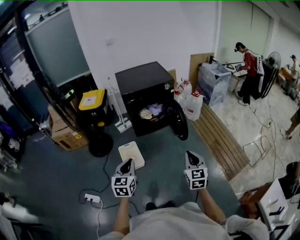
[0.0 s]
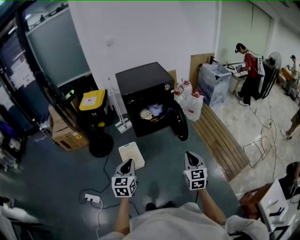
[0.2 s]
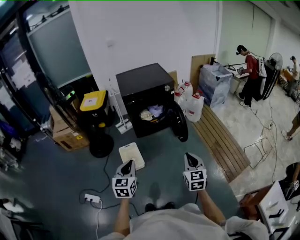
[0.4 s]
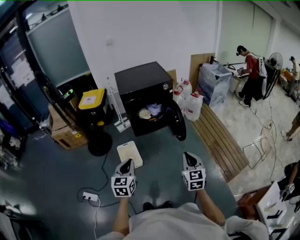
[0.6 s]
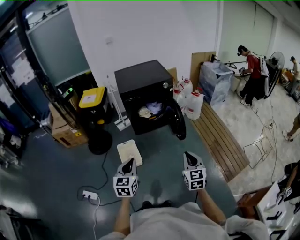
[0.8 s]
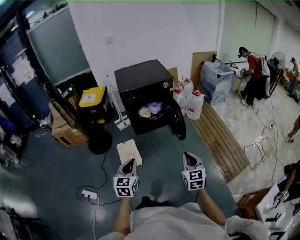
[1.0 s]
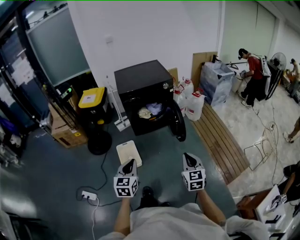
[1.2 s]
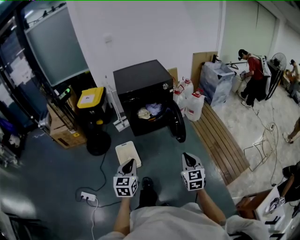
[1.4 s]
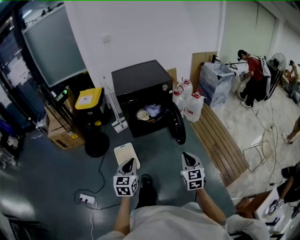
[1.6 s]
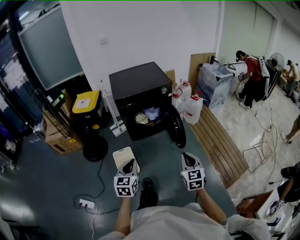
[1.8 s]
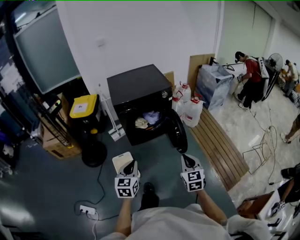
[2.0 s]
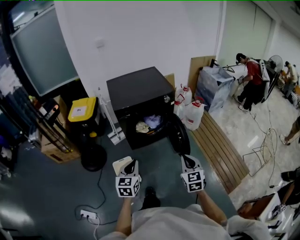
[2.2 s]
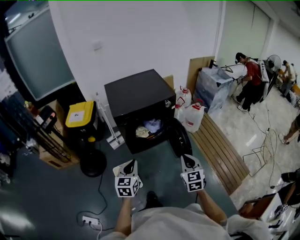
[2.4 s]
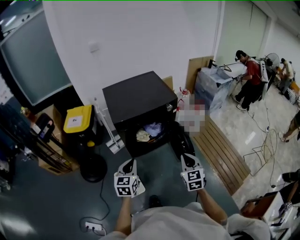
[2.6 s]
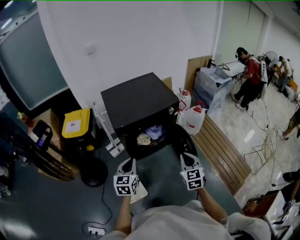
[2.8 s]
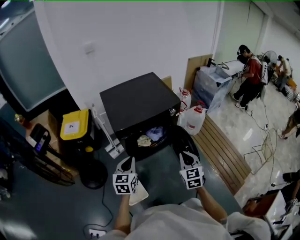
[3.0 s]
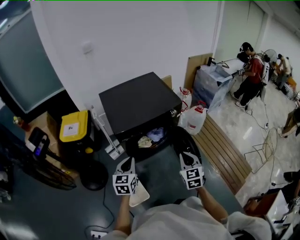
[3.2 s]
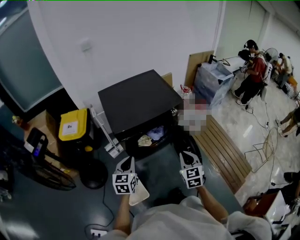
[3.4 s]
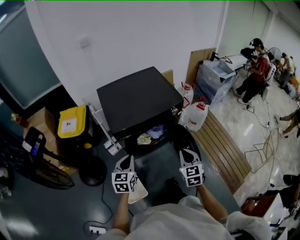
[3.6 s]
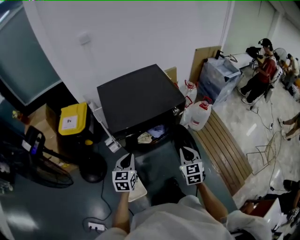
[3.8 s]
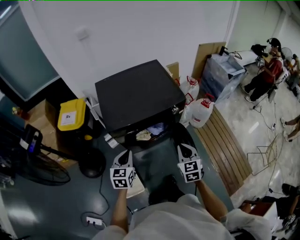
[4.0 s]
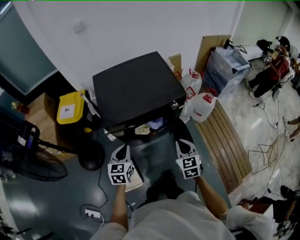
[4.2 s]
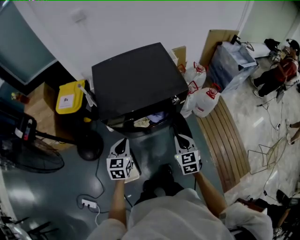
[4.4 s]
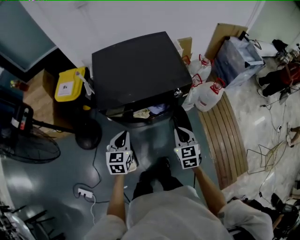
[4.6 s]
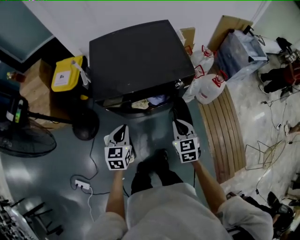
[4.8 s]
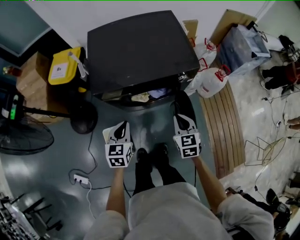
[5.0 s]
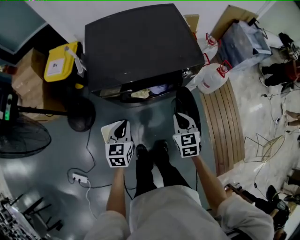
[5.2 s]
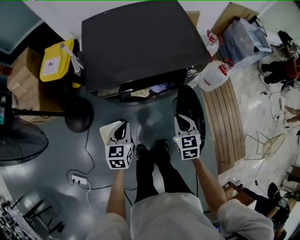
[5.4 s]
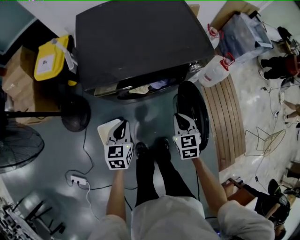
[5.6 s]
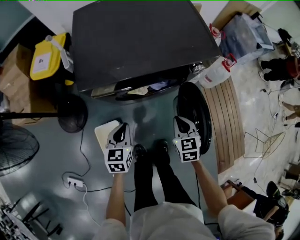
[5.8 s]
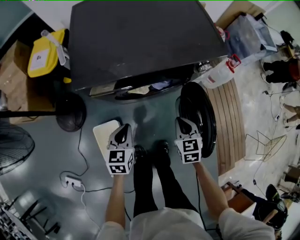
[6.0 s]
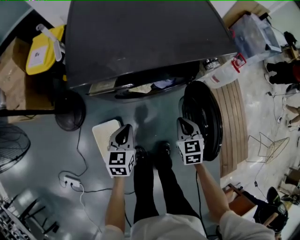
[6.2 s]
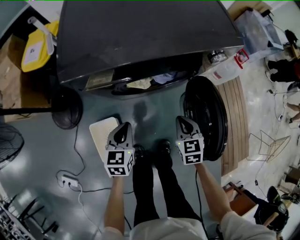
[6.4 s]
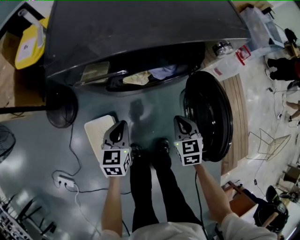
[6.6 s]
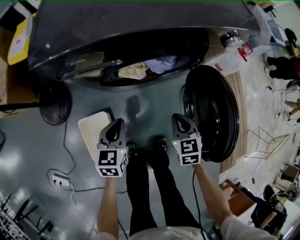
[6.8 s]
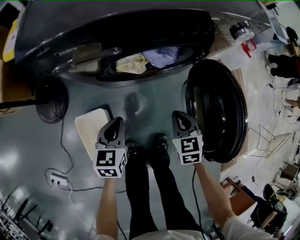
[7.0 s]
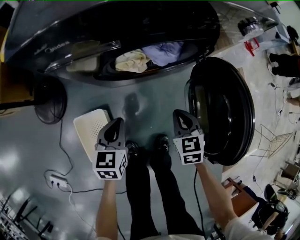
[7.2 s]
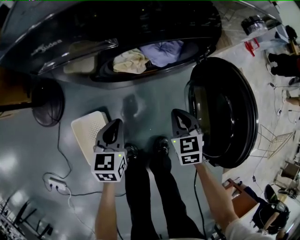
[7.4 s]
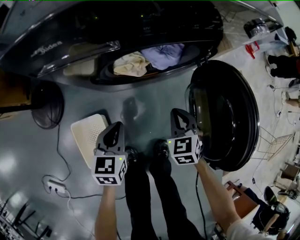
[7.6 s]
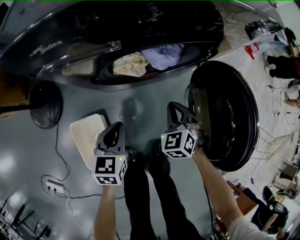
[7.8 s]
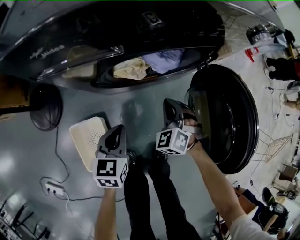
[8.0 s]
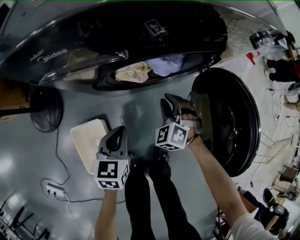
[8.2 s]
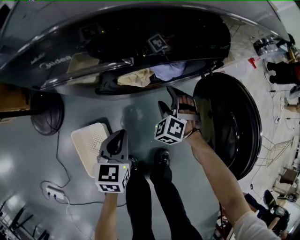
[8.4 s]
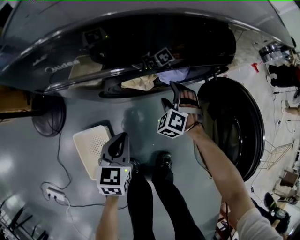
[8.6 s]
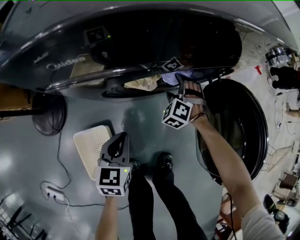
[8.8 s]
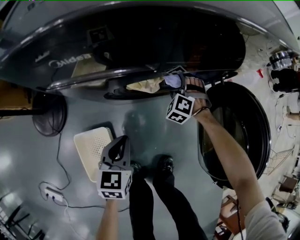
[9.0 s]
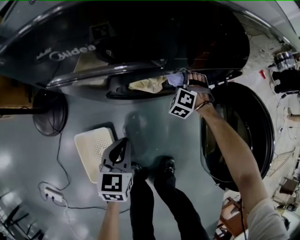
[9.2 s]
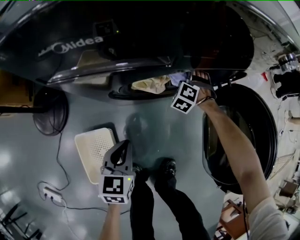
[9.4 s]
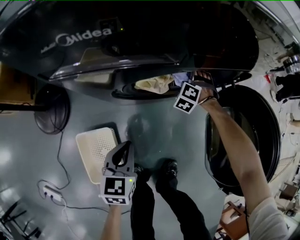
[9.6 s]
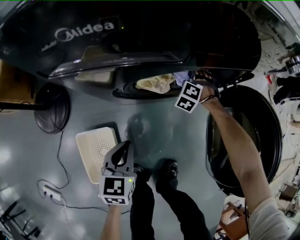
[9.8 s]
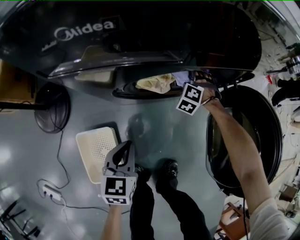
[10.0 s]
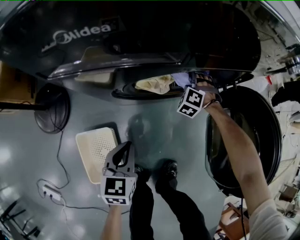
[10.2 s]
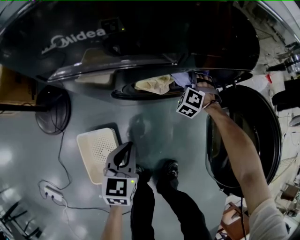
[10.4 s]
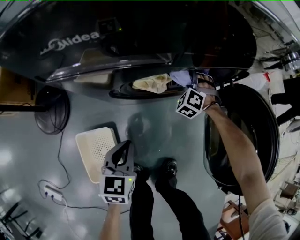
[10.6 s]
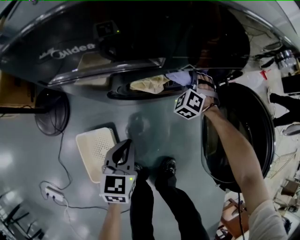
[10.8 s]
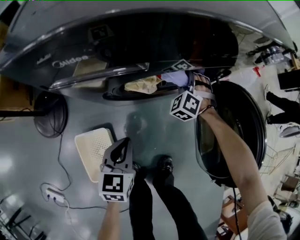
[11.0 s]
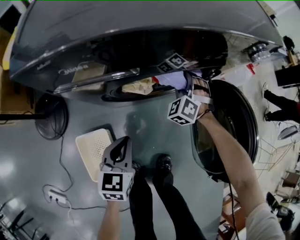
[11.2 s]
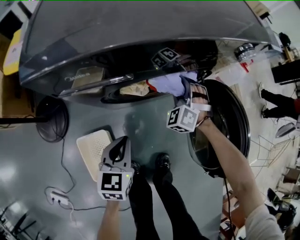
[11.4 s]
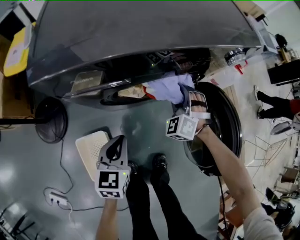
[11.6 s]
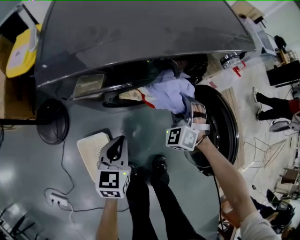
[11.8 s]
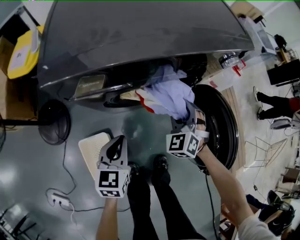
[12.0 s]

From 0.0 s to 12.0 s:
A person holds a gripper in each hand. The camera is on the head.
From 0.0 s to 1.6 s: The left gripper travels forward and to the right by roughly 10 cm. The right gripper travels forward by roughly 10 cm.
From 1.6 s to 3.0 s: The right gripper goes about 40 cm forward and to the left; the left gripper heads forward, covering about 40 cm.
From 3.0 s to 4.4 s: The left gripper goes about 15 cm forward, to the right and downward; the right gripper travels forward and downward by about 20 cm.
From 4.4 s to 6.0 s: The two grippers go roughly 25 cm downward.
From 6.0 s to 7.6 s: Both grippers move downward, roughly 20 cm.
From 7.6 s to 9.0 s: The right gripper shifts roughly 20 cm forward and downward, rolls counterclockwise, seen from behind, by some 50 degrees, and opens up.
From 9.0 s to 10.4 s: The right gripper closes.
From 10.4 s to 12.0 s: The right gripper heads upward and backward, covering about 30 cm, and rotates approximately 30 degrees; the left gripper heads upward, covering about 15 cm.

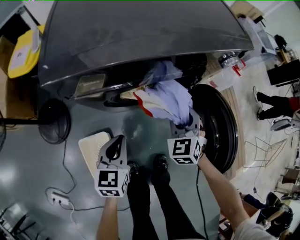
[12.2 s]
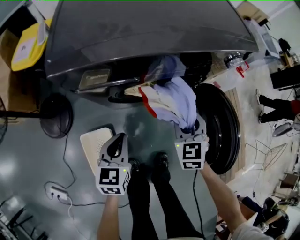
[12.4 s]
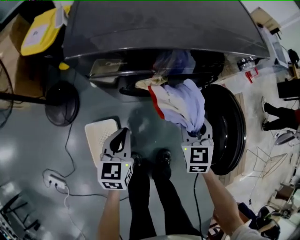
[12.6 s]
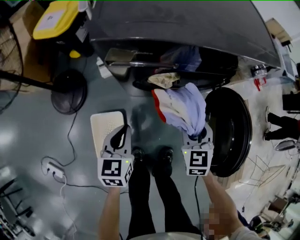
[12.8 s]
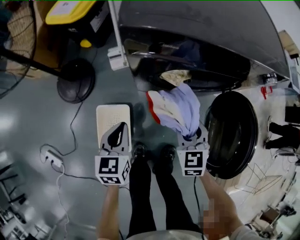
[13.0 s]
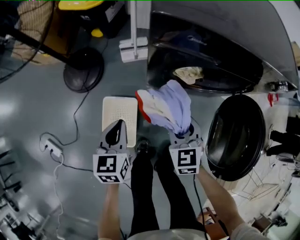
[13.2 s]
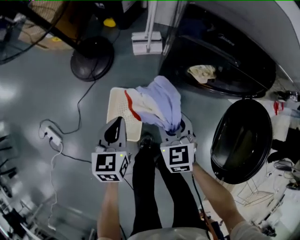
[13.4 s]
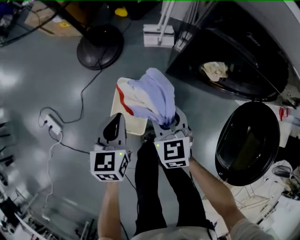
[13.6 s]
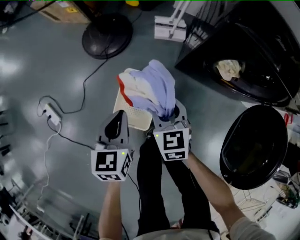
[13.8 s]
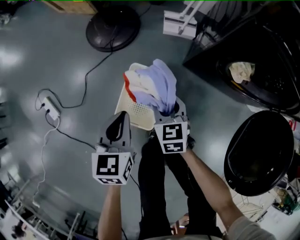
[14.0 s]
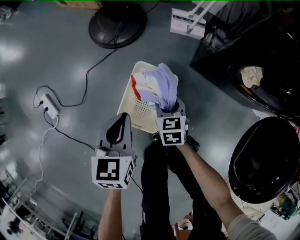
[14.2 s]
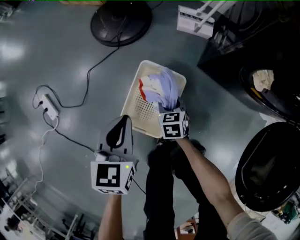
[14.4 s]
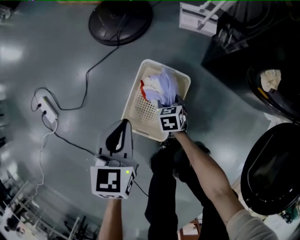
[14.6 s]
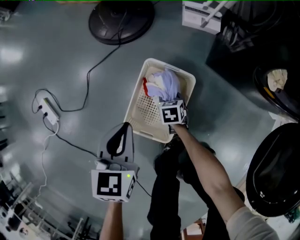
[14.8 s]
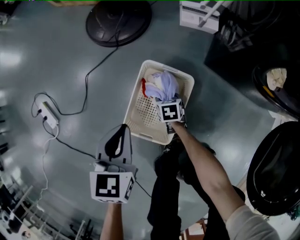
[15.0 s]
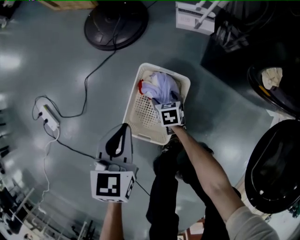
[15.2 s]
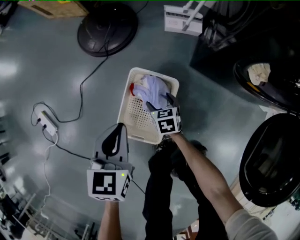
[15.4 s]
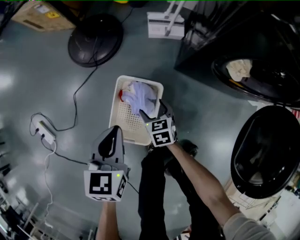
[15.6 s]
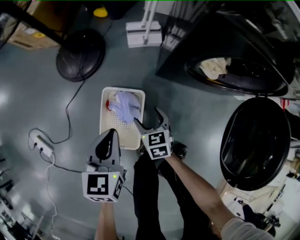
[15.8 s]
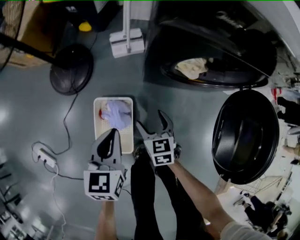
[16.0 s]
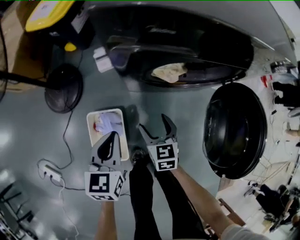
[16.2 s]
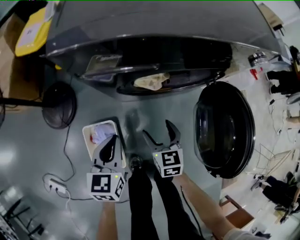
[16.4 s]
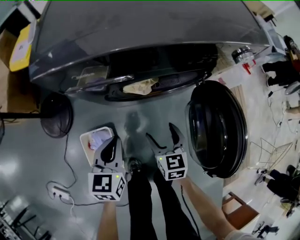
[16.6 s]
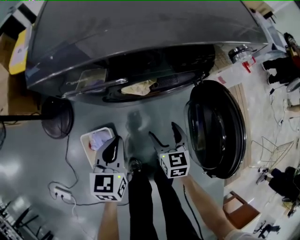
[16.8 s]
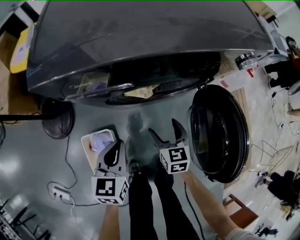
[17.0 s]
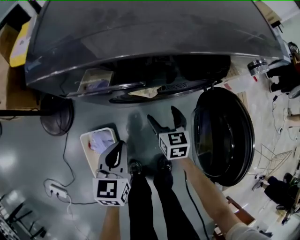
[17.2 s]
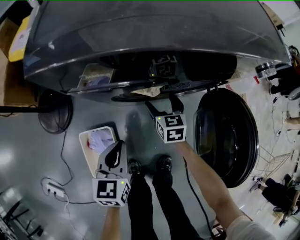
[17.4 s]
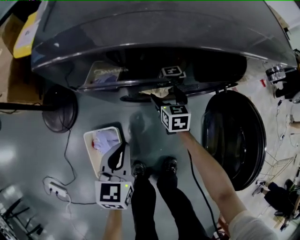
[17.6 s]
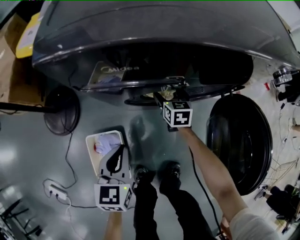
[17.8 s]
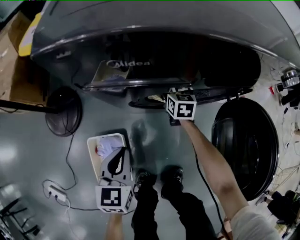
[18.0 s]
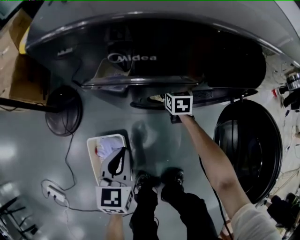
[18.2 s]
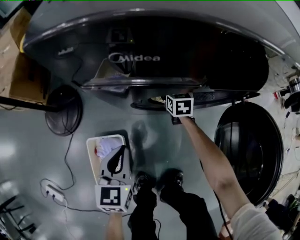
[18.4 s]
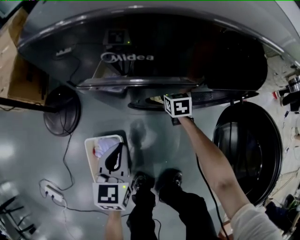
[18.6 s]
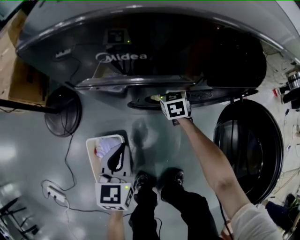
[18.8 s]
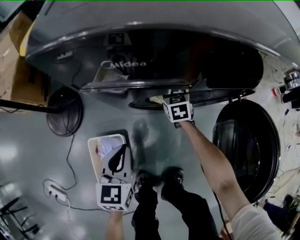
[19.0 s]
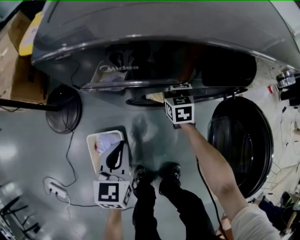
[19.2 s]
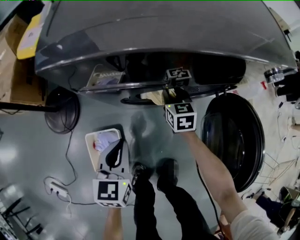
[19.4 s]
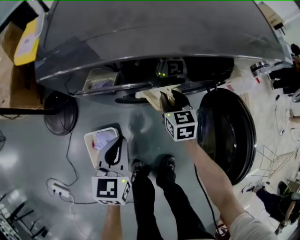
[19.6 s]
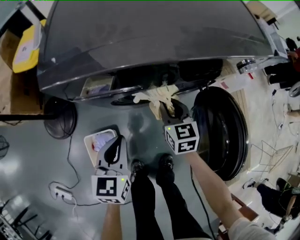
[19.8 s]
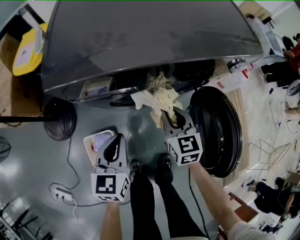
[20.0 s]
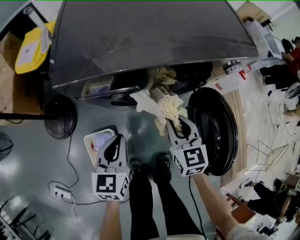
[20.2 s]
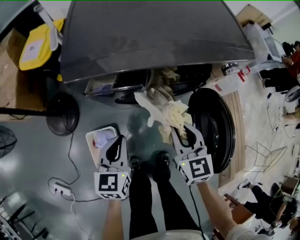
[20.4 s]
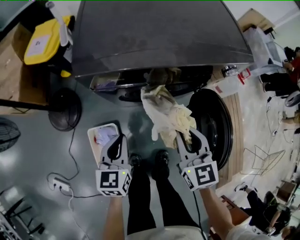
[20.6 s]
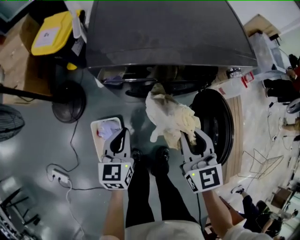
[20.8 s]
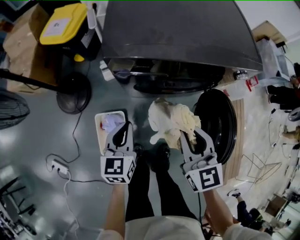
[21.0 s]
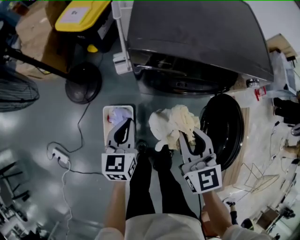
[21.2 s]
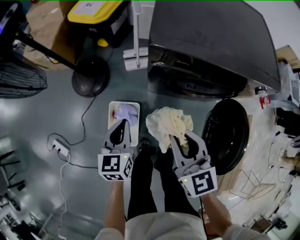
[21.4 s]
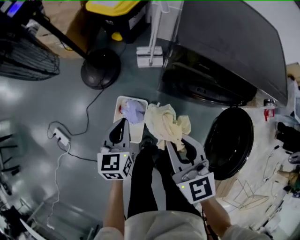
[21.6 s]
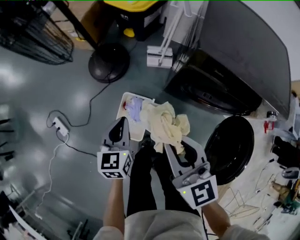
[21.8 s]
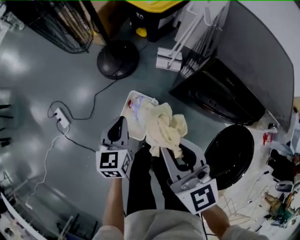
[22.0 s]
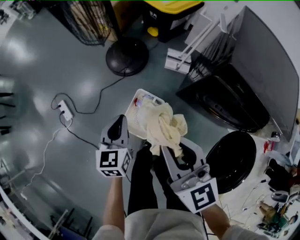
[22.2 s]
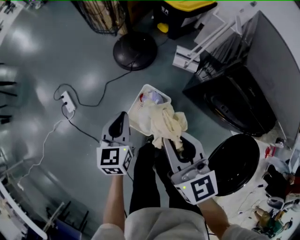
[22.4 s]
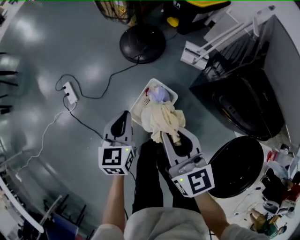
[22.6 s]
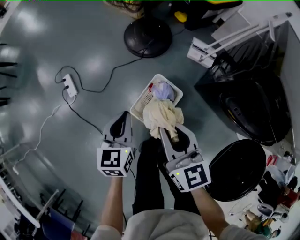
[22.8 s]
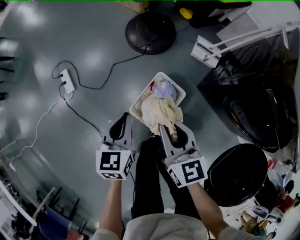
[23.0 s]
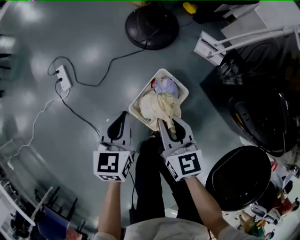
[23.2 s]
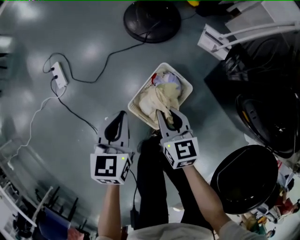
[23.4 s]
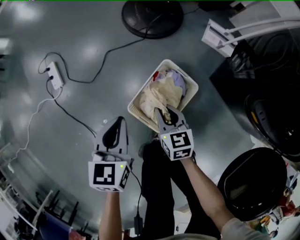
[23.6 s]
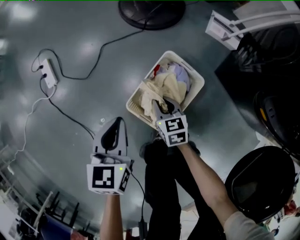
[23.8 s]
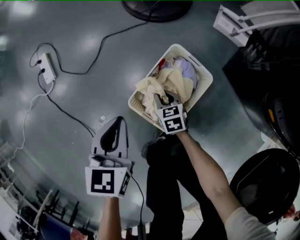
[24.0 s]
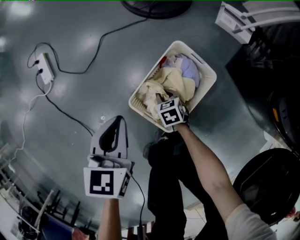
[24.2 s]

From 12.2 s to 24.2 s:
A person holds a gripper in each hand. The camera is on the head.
From 12.2 s to 13.8 s: The right gripper shifts by some 40 cm, and rotates about 40 degrees, while the left gripper shifts by roughly 35 cm, and swivels some 40 degrees.
From 13.8 s to 15.2 s: The left gripper heads downward and to the left, covering some 15 cm, while the right gripper travels downward by roughly 40 cm, rotates roughly 30 degrees, and opens up.
From 15.2 s to 16.6 s: The left gripper ends up approximately 40 cm from where it was, and changes its angle by some 30 degrees; the right gripper goes approximately 40 cm upward, and swivels approximately 50 degrees.
From 16.6 s to 18.2 s: The left gripper travels downward and to the left by about 10 cm, while the right gripper goes some 30 cm forward and downward.
From 18.2 s to 19.8 s: The right gripper moves upward and backward, approximately 25 cm, and closes up. The left gripper goes approximately 15 cm upward and to the right.
From 19.8 s to 21.2 s: The left gripper shifts about 15 cm upward, to the left and backward, while the right gripper goes about 30 cm upward and backward.
From 21.2 s to 22.6 s: The left gripper ends up roughly 30 cm from where it was, and swivels some 40 degrees. The right gripper travels upward and back again, roughly 5 cm each way, and rotates approximately 40 degrees.
From 22.6 s to 24.2 s: The left gripper moves downward, about 30 cm, while the right gripper shifts approximately 70 cm downward, and tilts its fingers some 50 degrees downward.
